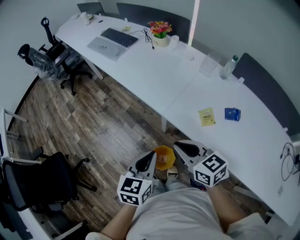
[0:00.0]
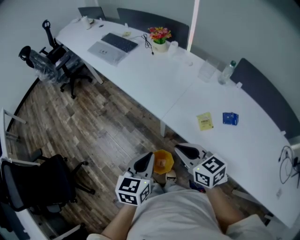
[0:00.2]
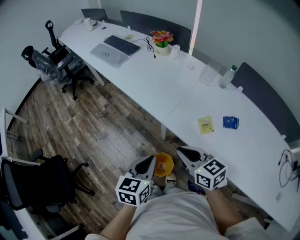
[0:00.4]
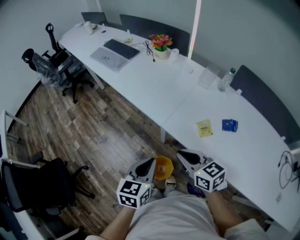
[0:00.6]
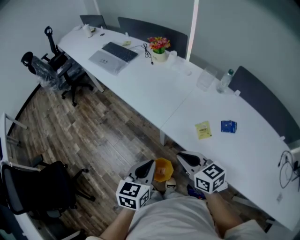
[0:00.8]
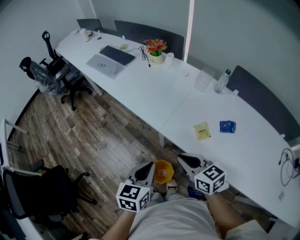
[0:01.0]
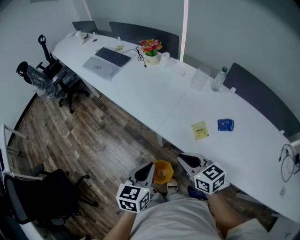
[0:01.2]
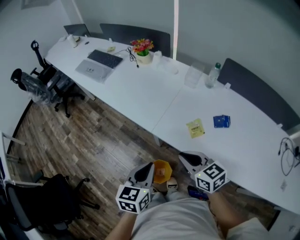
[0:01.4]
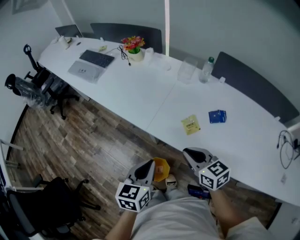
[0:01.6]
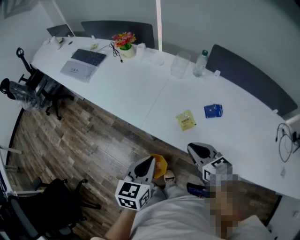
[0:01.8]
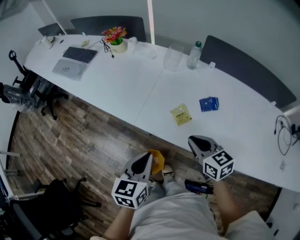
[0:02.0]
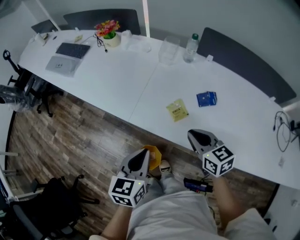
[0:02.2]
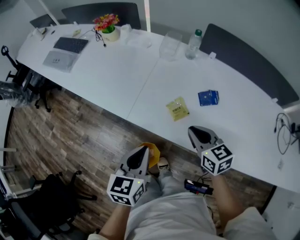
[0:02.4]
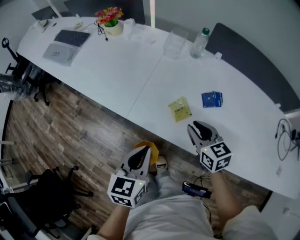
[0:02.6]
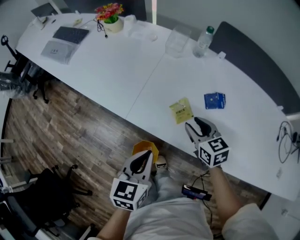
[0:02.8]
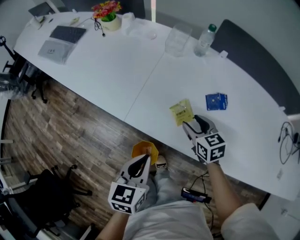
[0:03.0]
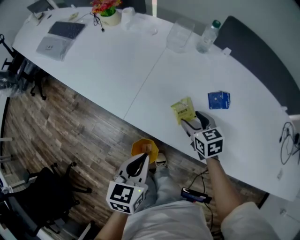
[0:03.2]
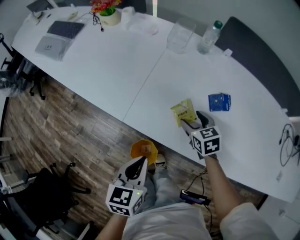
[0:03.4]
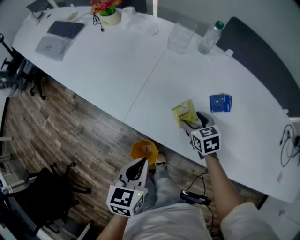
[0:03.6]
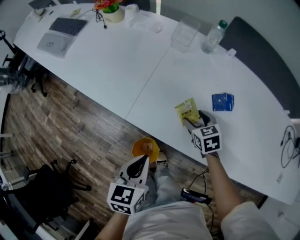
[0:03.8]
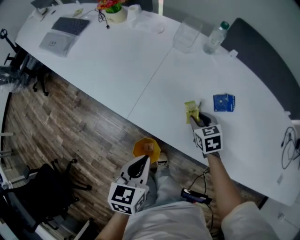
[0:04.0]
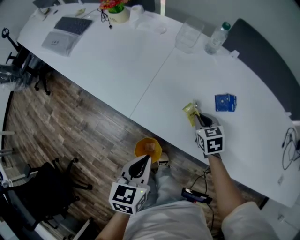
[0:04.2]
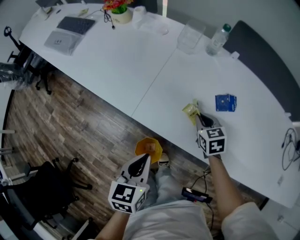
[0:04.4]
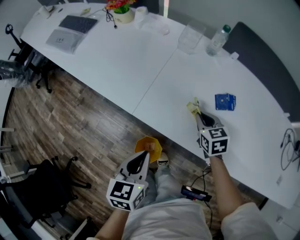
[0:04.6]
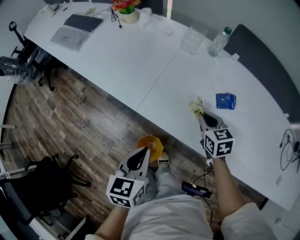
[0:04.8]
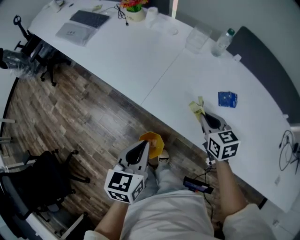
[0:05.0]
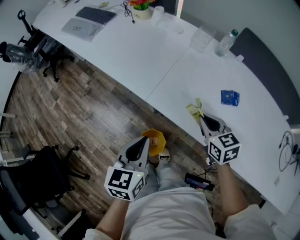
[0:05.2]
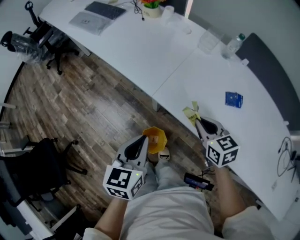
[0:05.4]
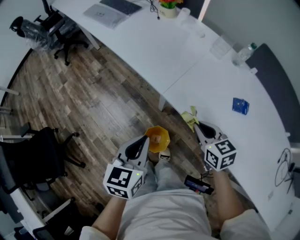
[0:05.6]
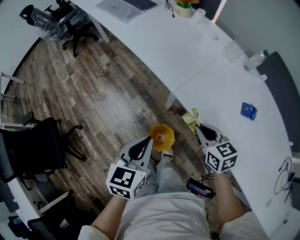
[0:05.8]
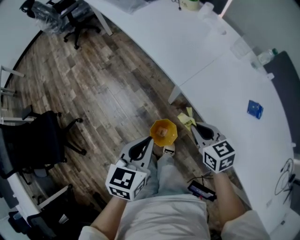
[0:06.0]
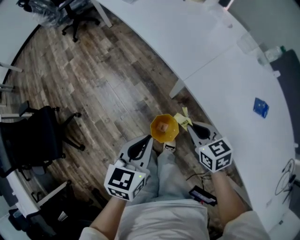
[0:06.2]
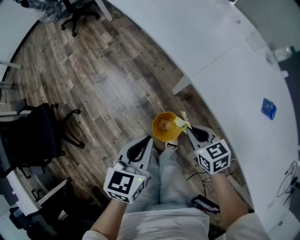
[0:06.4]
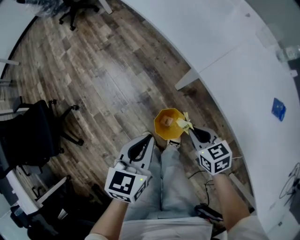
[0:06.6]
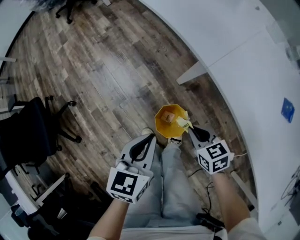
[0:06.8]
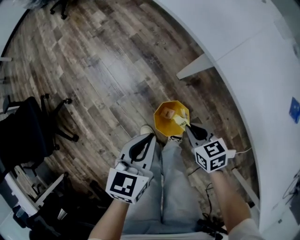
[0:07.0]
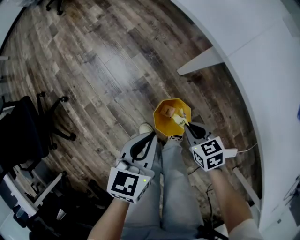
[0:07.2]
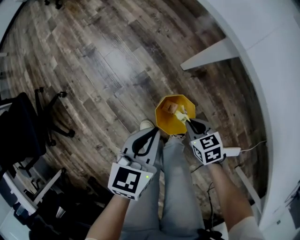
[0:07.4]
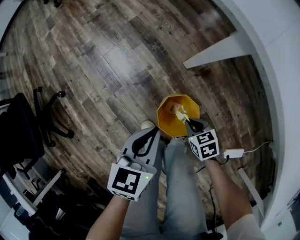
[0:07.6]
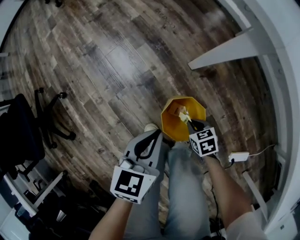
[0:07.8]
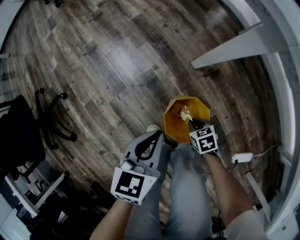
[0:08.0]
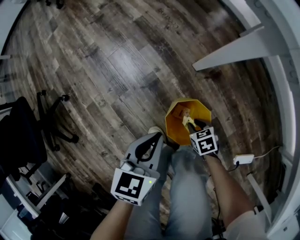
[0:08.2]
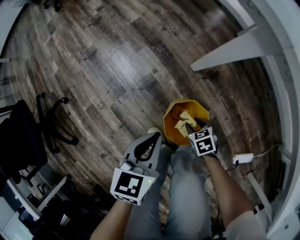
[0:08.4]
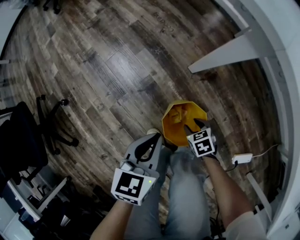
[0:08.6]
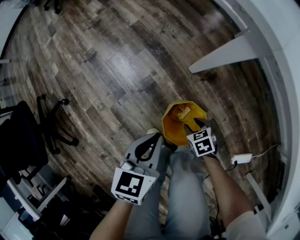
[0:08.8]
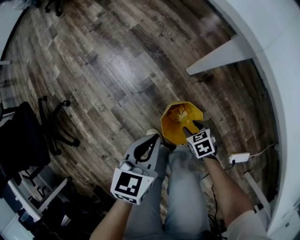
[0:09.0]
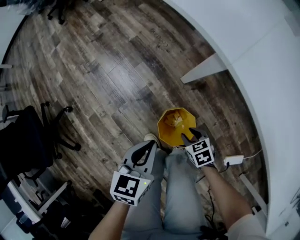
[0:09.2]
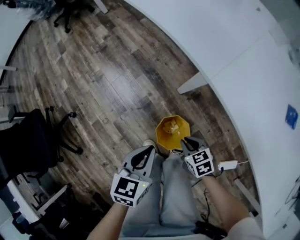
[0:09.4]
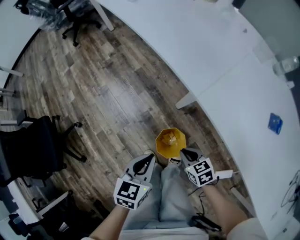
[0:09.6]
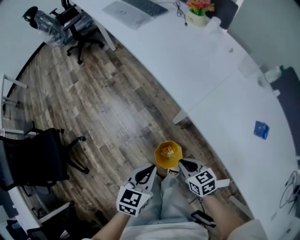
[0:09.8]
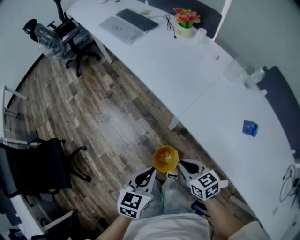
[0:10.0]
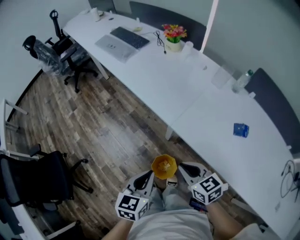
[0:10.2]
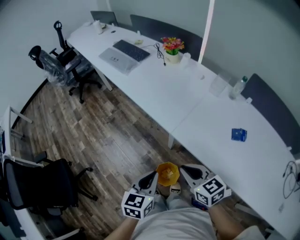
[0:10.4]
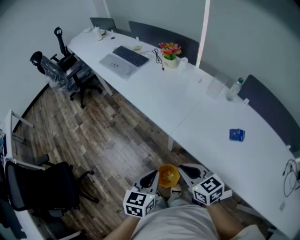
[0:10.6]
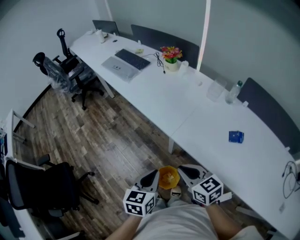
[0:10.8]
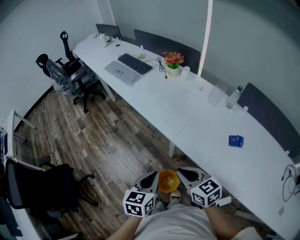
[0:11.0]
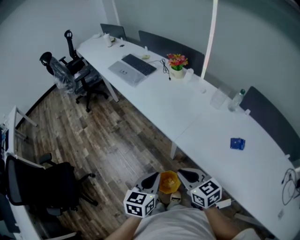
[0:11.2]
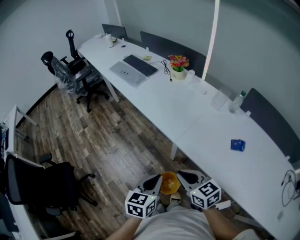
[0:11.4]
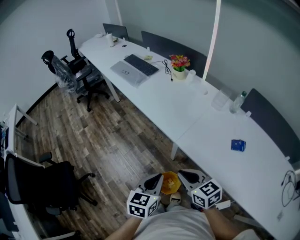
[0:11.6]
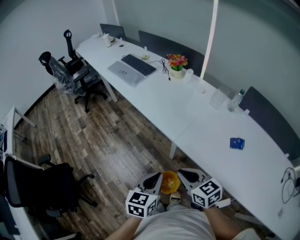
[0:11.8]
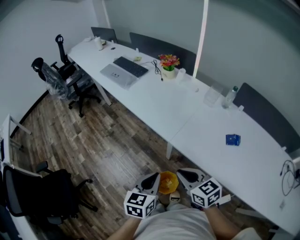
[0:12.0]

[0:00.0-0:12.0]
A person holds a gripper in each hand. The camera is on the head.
0:00.0 to 0:01.6: The left gripper goes about 5 cm to the right. The right gripper moves to the right, about 10 cm.
0:01.6 to 0:03.0: The left gripper goes approximately 10 cm downward and to the right; the right gripper moves downward, forward and to the right, roughly 20 cm, and opens up.
0:03.0 to 0:04.4: The right gripper closes up.
0:04.4 to 0:06.0: The left gripper ends up roughly 15 cm from where it was. Meanwhile the right gripper changes place by approximately 25 cm, and swivels roughly 30 degrees.
0:06.0 to 0:07.6: The grippers both shift downward by roughly 40 cm. The right gripper turns by roughly 30 degrees.
0:07.6 to 0:09.0: The right gripper heads downward, covering approximately 5 cm, and opens up.
0:09.0 to 0:10.4: The right gripper heads upward, covering about 60 cm, tilts its fingers about 40 degrees upward, and closes its fingers. Meanwhile the left gripper goes some 40 cm upward.
0:10.4 to 0:12.0: The grippers make only small movements.

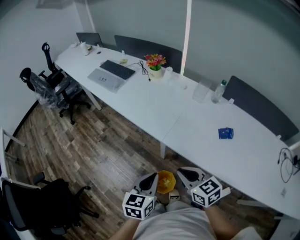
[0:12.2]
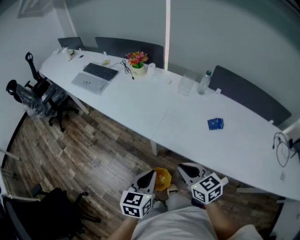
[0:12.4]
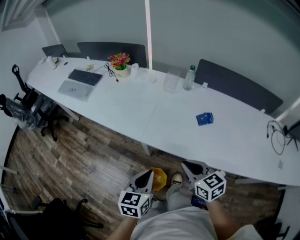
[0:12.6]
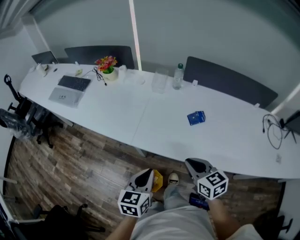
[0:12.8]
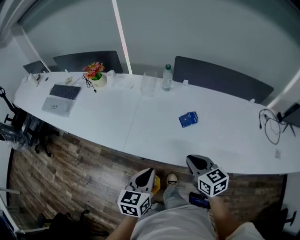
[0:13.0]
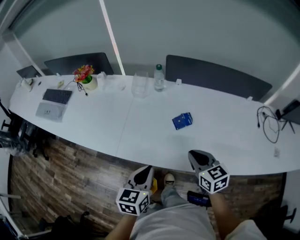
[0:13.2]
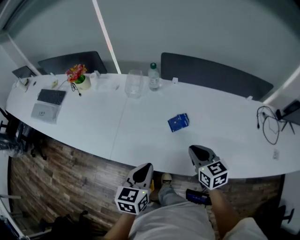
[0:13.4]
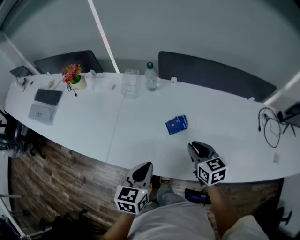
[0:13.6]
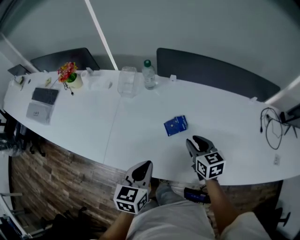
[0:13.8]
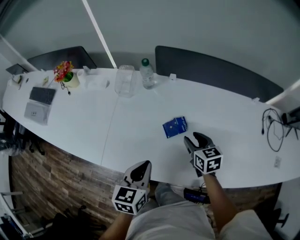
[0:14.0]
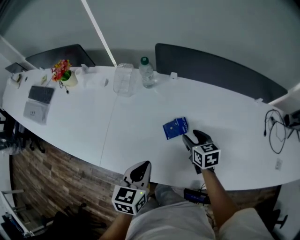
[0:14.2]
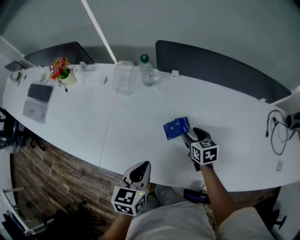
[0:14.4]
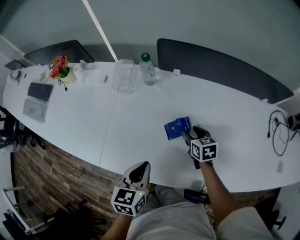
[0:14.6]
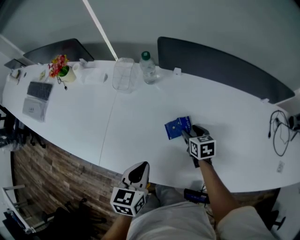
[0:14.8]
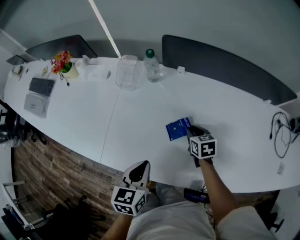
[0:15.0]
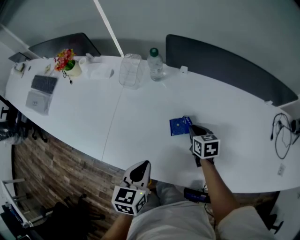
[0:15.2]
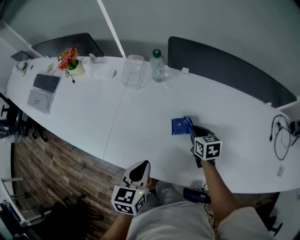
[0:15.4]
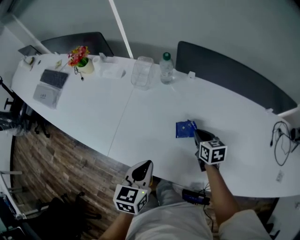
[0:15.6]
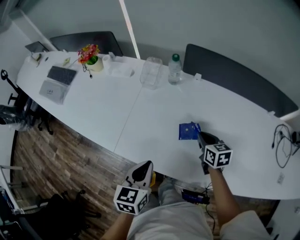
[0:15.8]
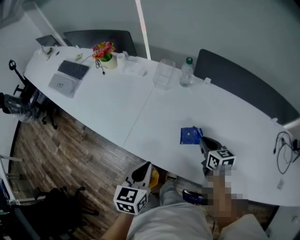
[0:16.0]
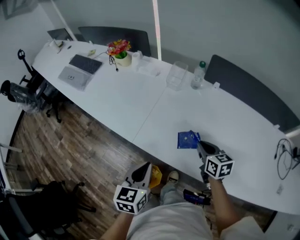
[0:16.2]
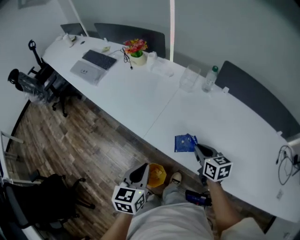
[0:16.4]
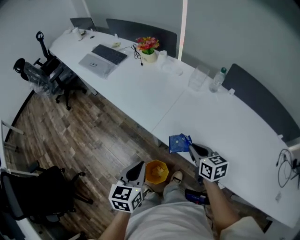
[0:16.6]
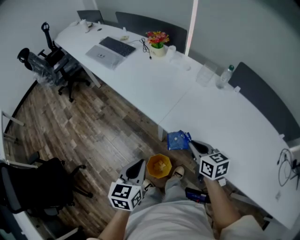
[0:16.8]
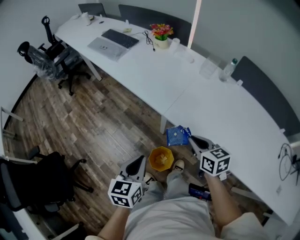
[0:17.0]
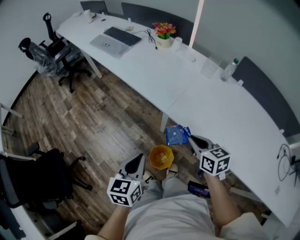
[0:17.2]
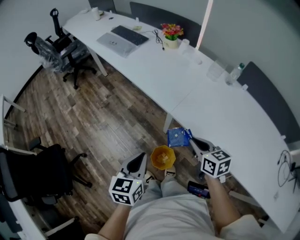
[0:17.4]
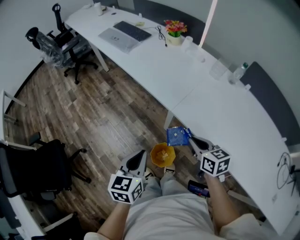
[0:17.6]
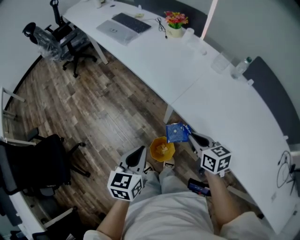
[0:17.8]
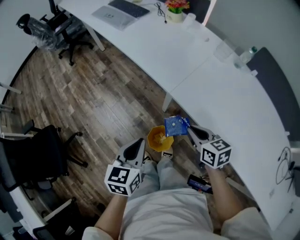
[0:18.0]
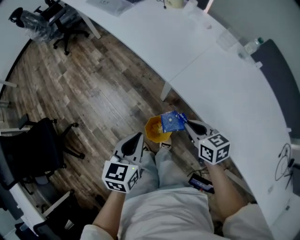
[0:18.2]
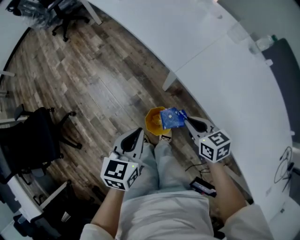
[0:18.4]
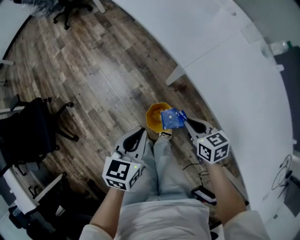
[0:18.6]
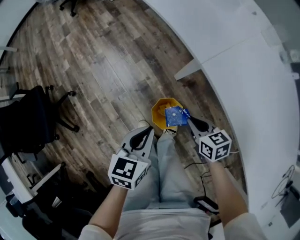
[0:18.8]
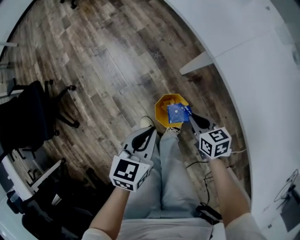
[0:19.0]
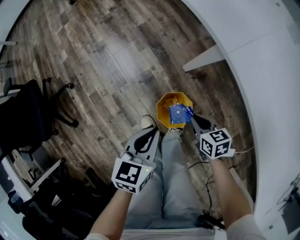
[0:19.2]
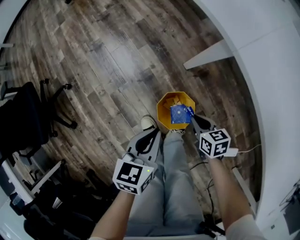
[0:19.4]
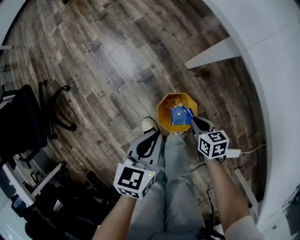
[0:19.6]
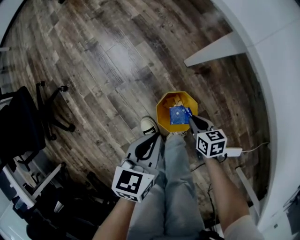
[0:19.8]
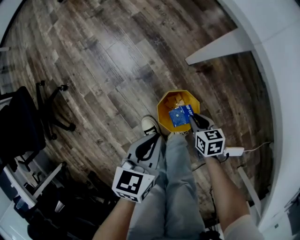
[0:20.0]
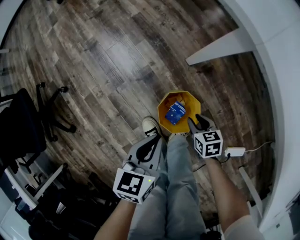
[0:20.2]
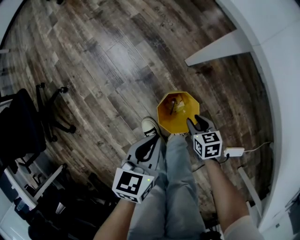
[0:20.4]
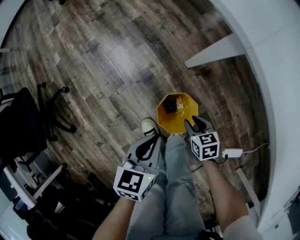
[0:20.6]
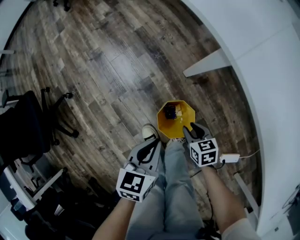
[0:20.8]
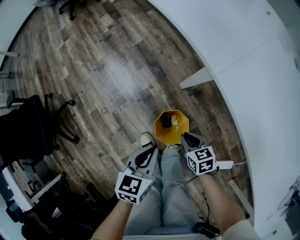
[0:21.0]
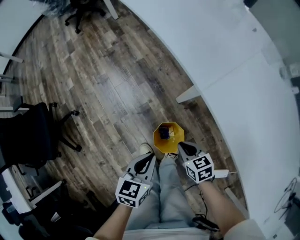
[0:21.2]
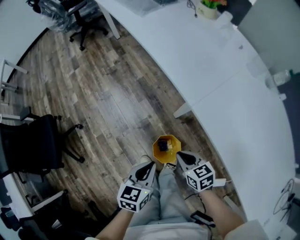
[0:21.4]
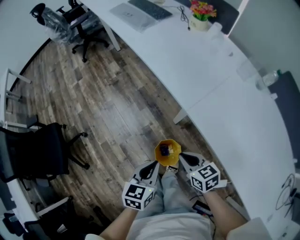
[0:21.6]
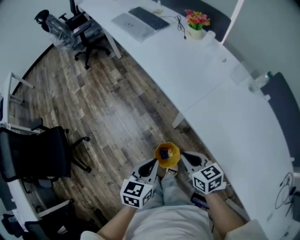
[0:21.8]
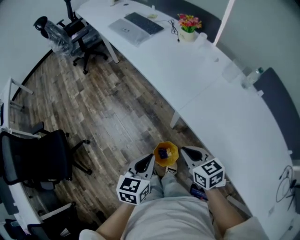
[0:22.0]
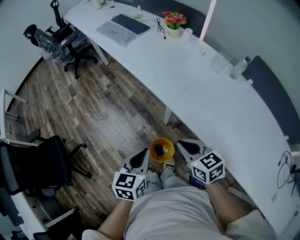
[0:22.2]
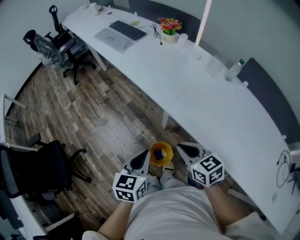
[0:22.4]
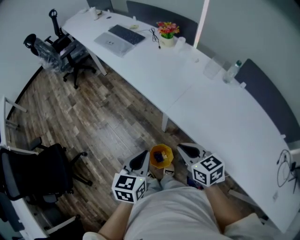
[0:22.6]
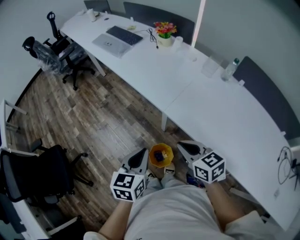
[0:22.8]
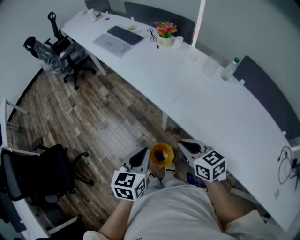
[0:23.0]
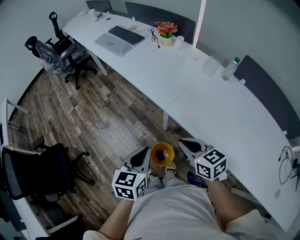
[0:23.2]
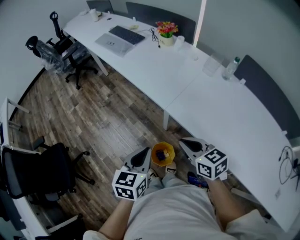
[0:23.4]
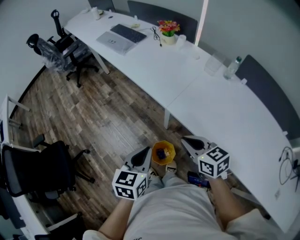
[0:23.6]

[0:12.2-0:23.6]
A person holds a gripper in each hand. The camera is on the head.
0:12.2 to 0:13.6: The right gripper ends up about 40 cm from where it was, and rotates approximately 40 degrees. Meanwhile the left gripper shifts by about 30 cm, and swivels about 20 degrees.
0:13.6 to 0:15.0: The right gripper heads downward and forward, covering roughly 20 cm, and opens, then closes once more, while the left gripper moves downward and forward, some 10 cm.
0:15.0 to 0:16.4: The right gripper goes roughly 30 cm to the left, upward and backward, and swivels roughly 30 degrees; the left gripper heads to the left and backward, covering approximately 25 cm, and changes its angle by some 20 degrees.
0:16.4 to 0:17.8: The left gripper shifts about 15 cm to the left and backward, while the right gripper moves to the left, roughly 20 cm.
0:17.8 to 0:19.4: The two grippers go about 40 cm downward. The right gripper changes its angle by roughly 20 degrees.
0:19.4 to 0:20.8: The right gripper travels downward and back again, approximately 10 cm each way.
0:20.8 to 0:22.2: Both grippers move upward, roughly 40 cm. The right gripper swivels about 30 degrees, and closes up.
0:22.2 to 0:23.6: The left gripper ends up some 5 cm from where it was. Meanwhile the right gripper changes place by about 5 cm.
